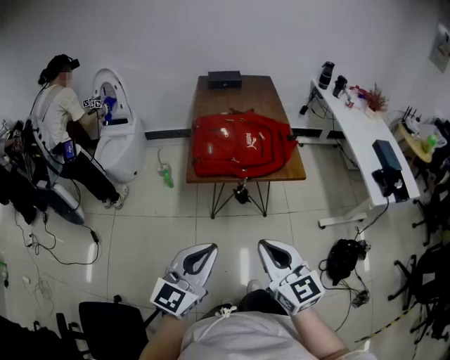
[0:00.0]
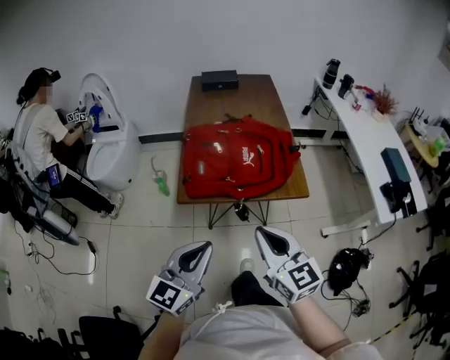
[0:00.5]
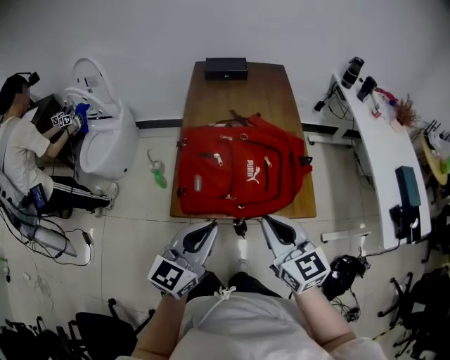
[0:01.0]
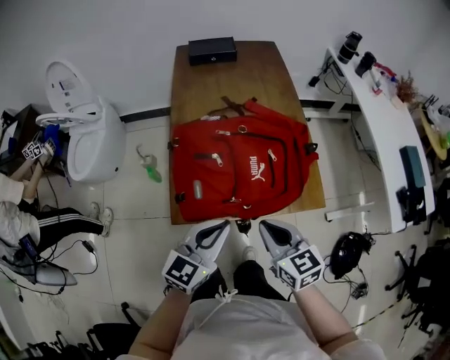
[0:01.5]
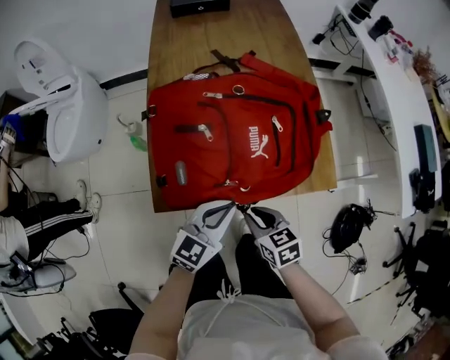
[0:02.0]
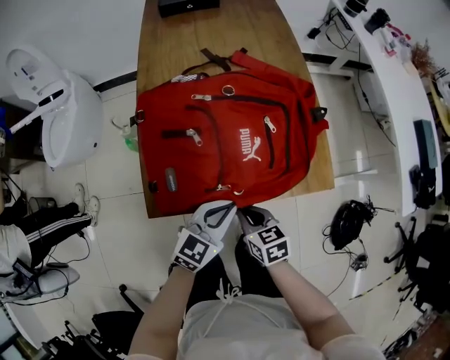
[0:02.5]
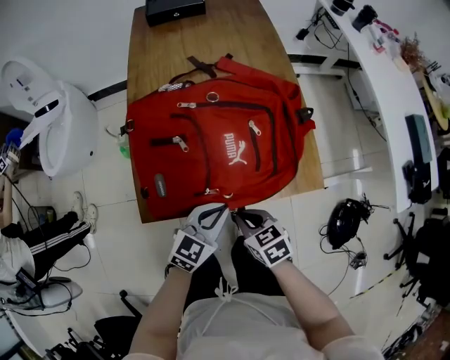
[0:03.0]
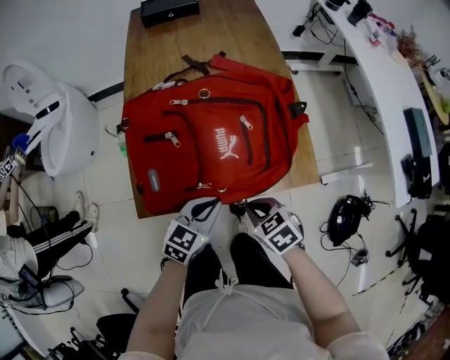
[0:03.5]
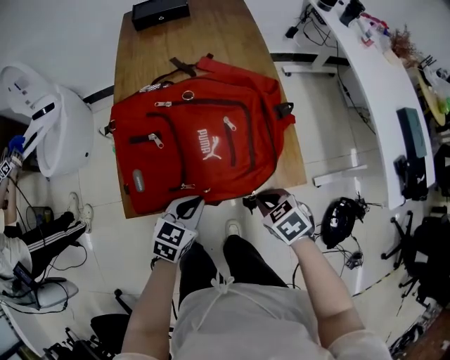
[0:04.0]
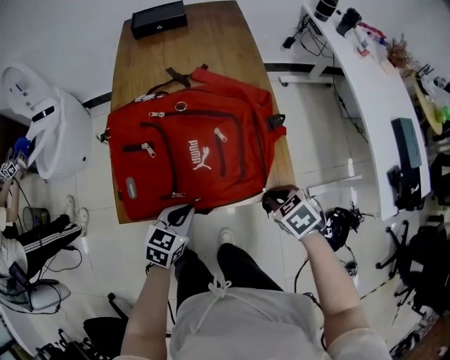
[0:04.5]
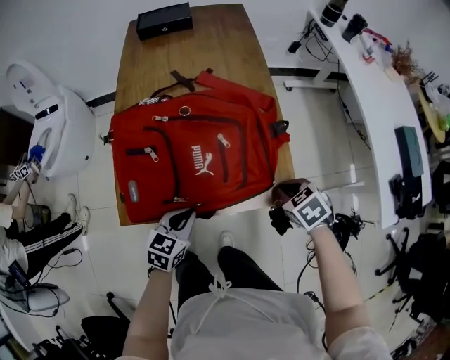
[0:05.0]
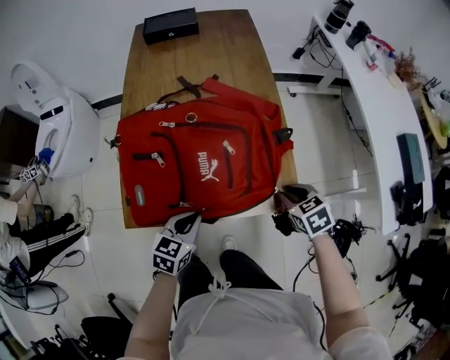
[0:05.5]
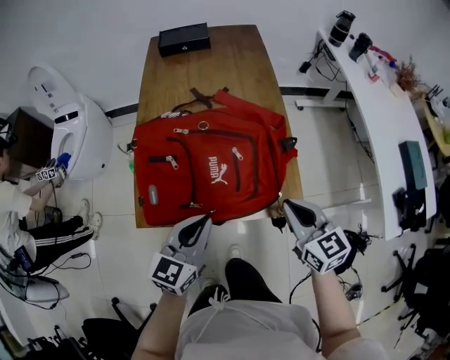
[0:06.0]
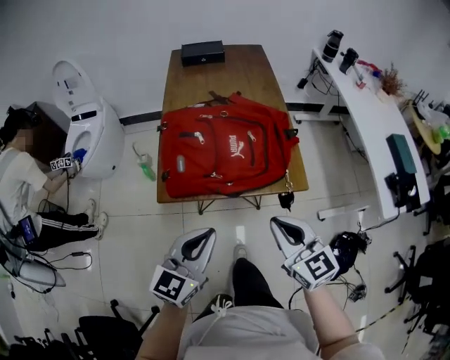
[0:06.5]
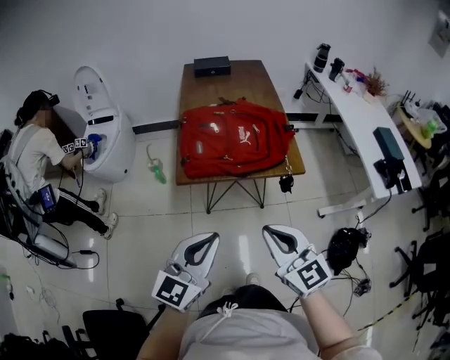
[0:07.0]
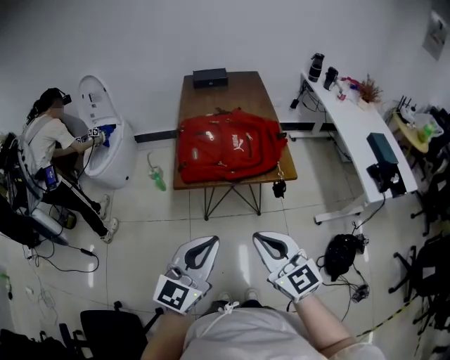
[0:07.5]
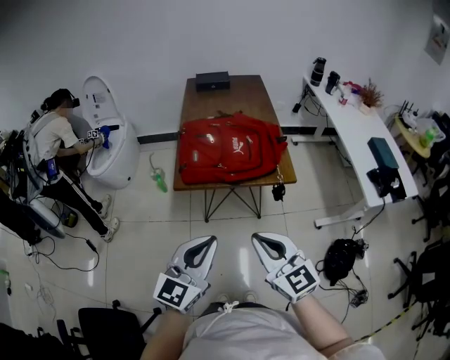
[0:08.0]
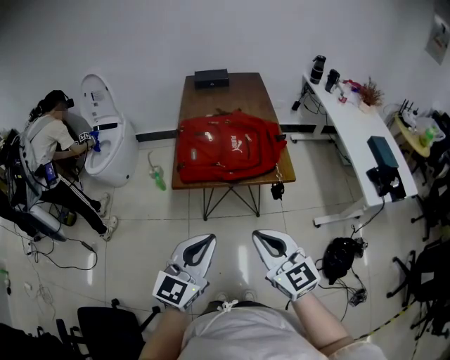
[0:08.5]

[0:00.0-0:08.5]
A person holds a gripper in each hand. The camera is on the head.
0:00.0 to 0:02.0: The two grippers go about 40 cm forward and downward. The left gripper swivels about 20 degrees, while the right gripper angles its fingers downward, by about 40 degrees.
0:02.0 to 0:04.0: The left gripper is displaced downward by about 5 cm. Meanwhile the right gripper moves to the right, about 15 cm, and turns by some 20 degrees.
0:04.0 to 0:06.5: Both grippers move upward and backward, some 25 cm. The left gripper rotates some 30 degrees. The right gripper points its fingers about 50 degrees further upward.
0:06.5 to 0:08.5: Both grippers move backward and upward, roughly 20 cm.

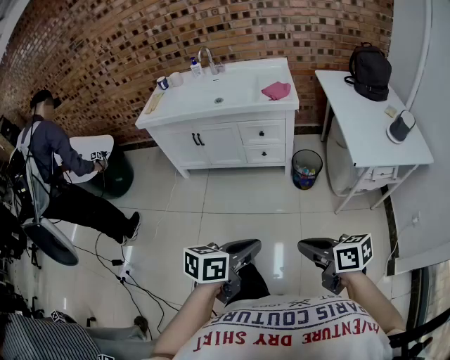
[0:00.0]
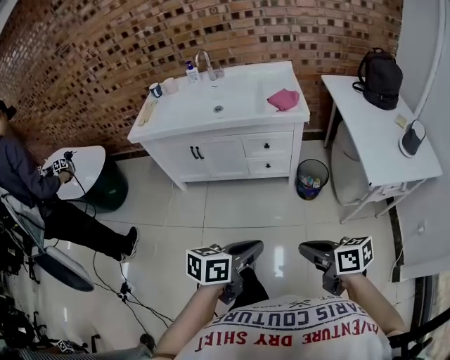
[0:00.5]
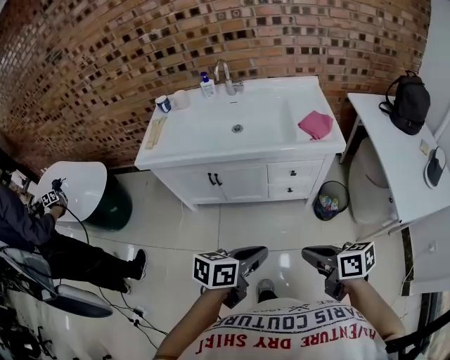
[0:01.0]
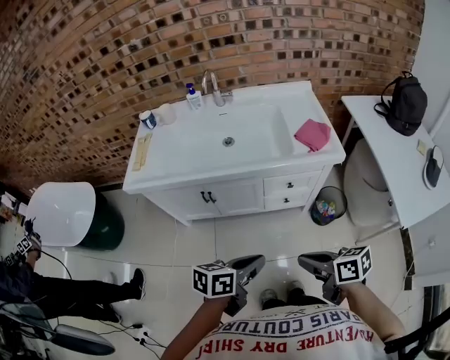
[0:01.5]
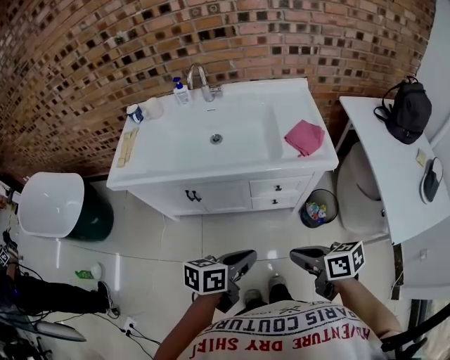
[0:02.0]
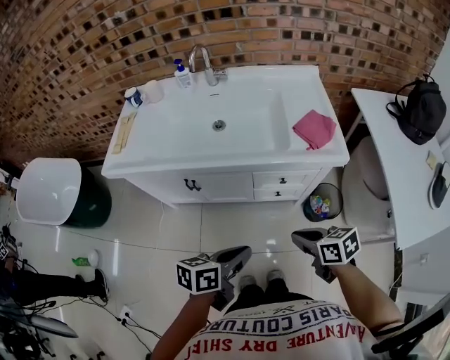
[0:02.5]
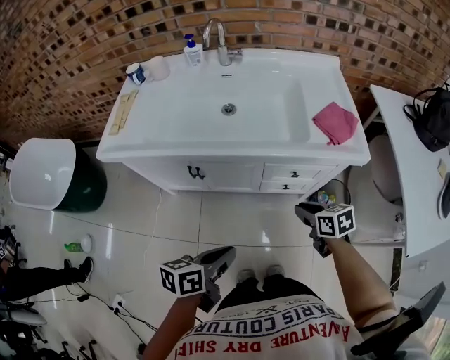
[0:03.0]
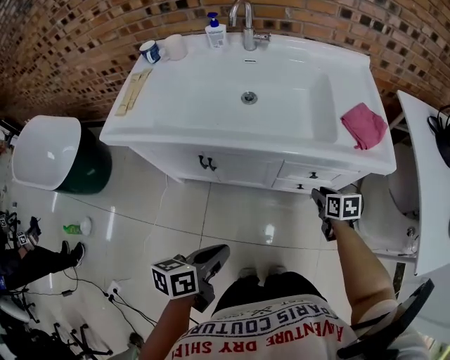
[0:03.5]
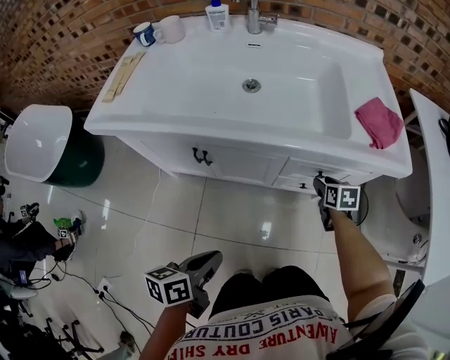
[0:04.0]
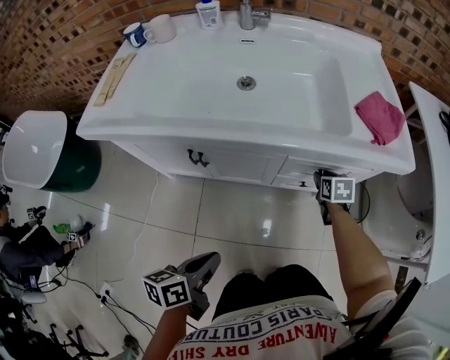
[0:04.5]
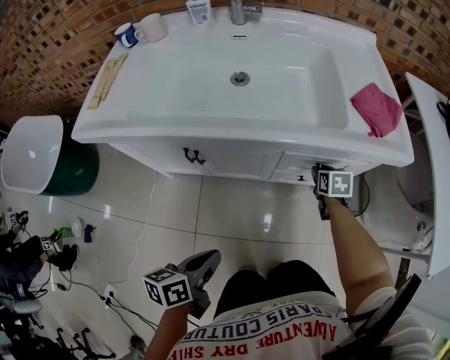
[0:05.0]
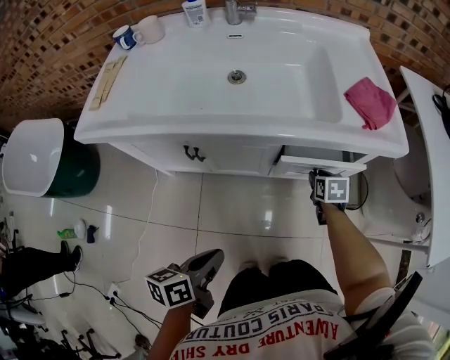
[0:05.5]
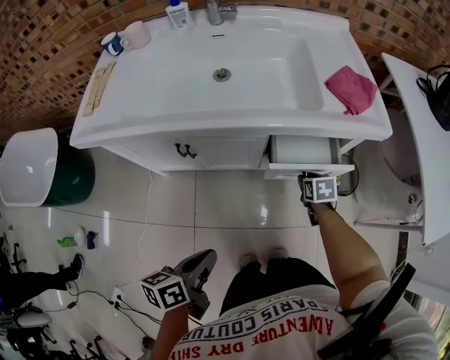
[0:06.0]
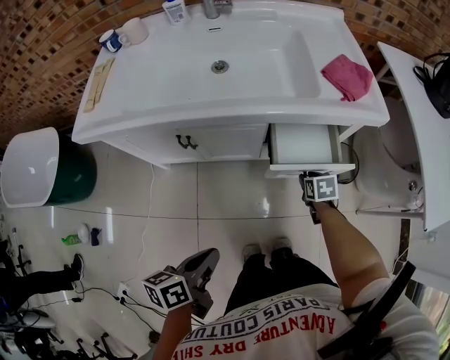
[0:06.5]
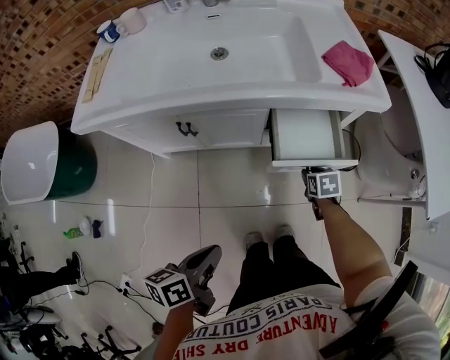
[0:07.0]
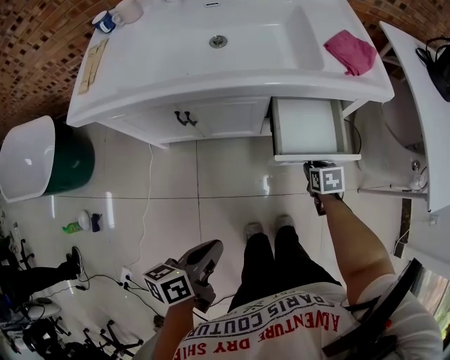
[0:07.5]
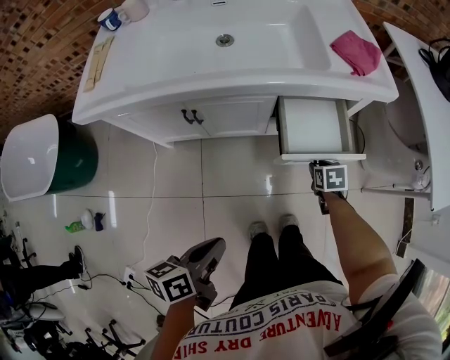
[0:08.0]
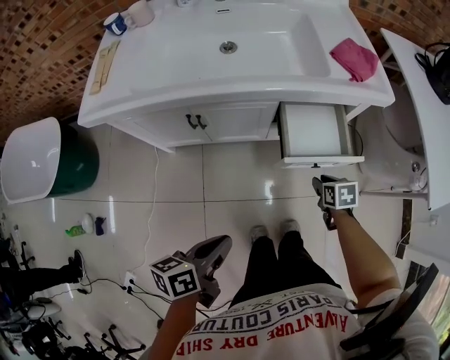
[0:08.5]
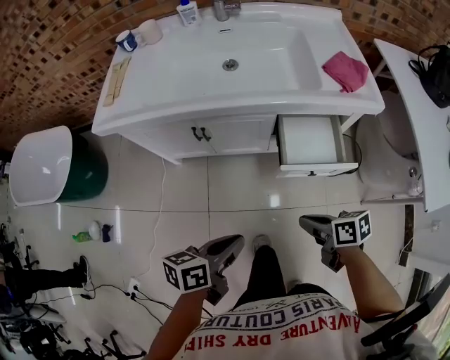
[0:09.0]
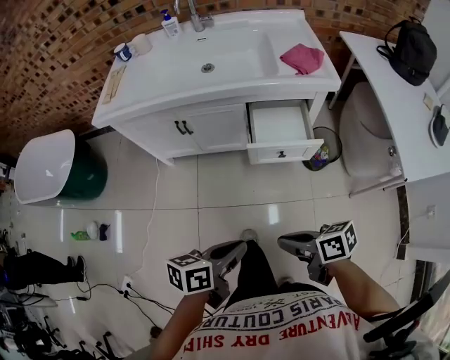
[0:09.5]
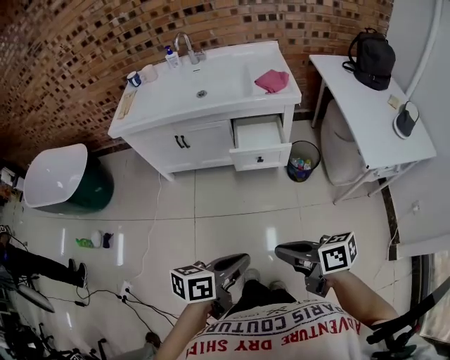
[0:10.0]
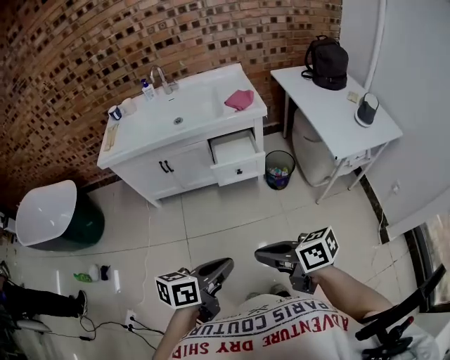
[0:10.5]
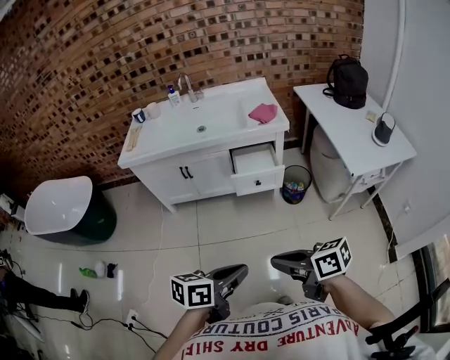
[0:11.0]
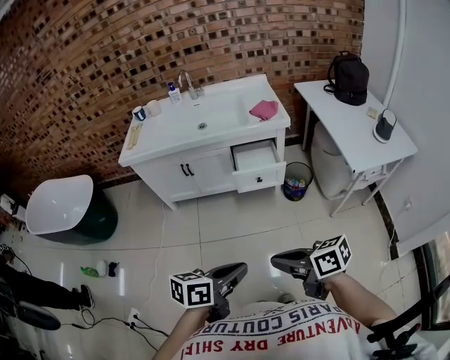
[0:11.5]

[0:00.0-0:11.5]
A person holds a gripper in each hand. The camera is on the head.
0:00.0 to 0:02.0: The two grippers travel together, forward, about 50 cm.
0:02.0 to 0:04.0: The right gripper moves downward and forward, some 50 cm, rotates about 40 degrees, and opens, while the left gripper shifts roughly 25 cm downward and to the left, and rotates roughly 20 degrees.
0:04.0 to 0:06.0: The right gripper heads backward, covering approximately 10 cm.
0:06.0 to 0:07.5: The left gripper moves backward, roughly 5 cm. Meanwhile the right gripper travels backward by some 10 cm.
0:07.5 to 0:09.5: The right gripper ends up approximately 40 cm from where it was, angles its fingers upward, by roughly 40 degrees, and closes; the left gripper moves about 20 cm.
0:09.5 to 0:11.5: The left gripper ends up roughly 30 cm from where it was; the right gripper changes place by some 30 cm.

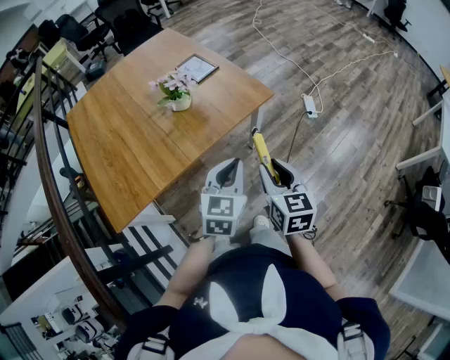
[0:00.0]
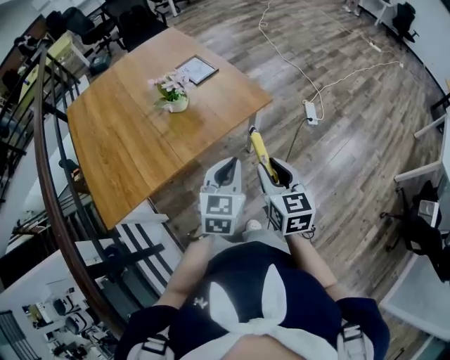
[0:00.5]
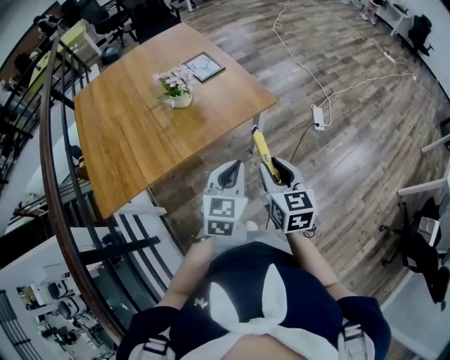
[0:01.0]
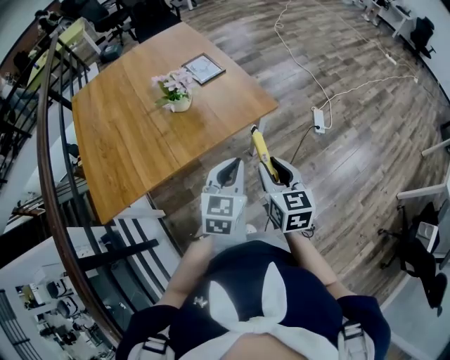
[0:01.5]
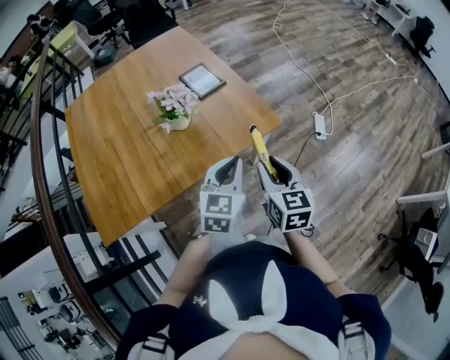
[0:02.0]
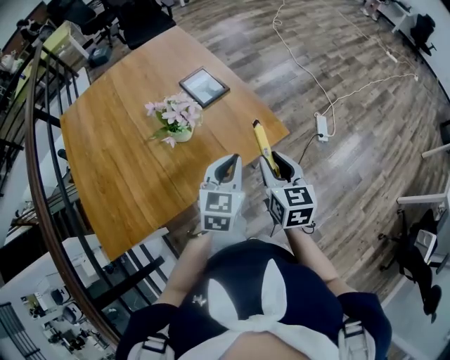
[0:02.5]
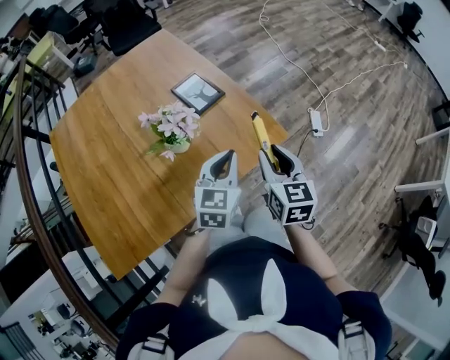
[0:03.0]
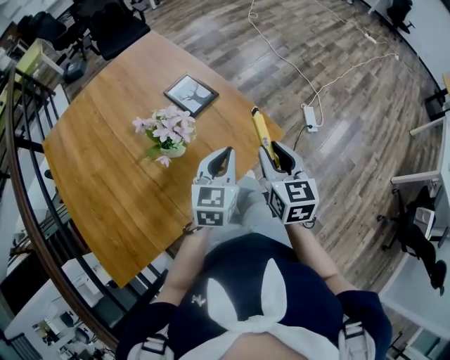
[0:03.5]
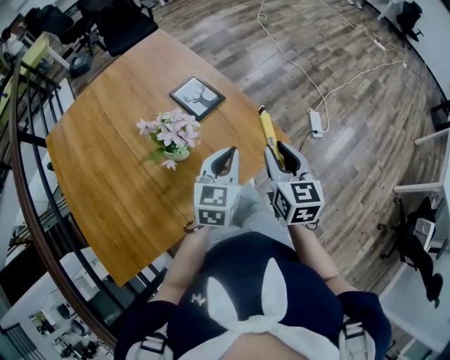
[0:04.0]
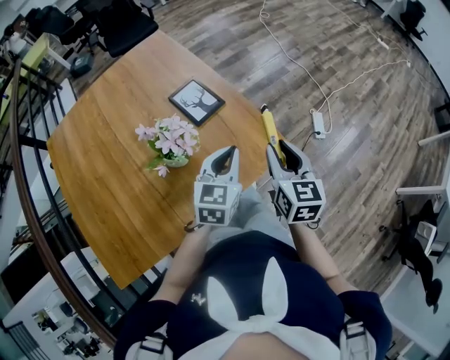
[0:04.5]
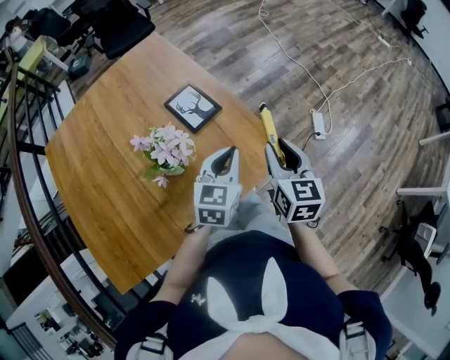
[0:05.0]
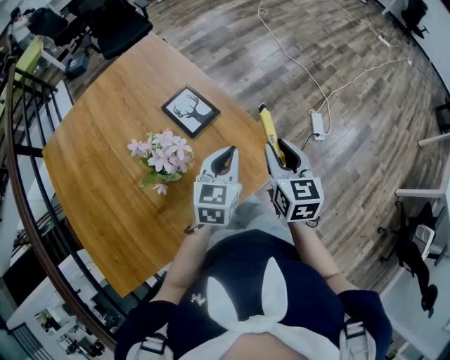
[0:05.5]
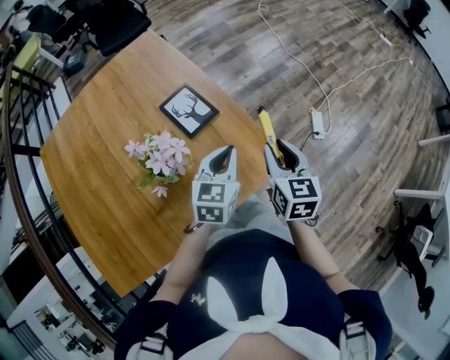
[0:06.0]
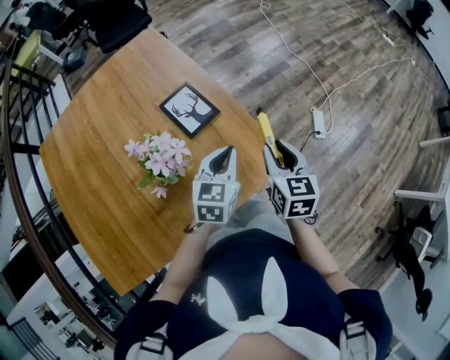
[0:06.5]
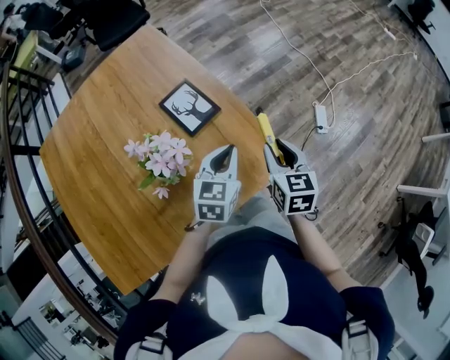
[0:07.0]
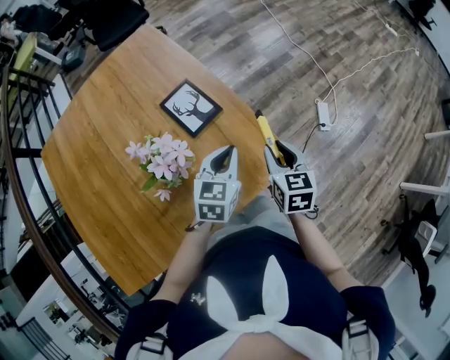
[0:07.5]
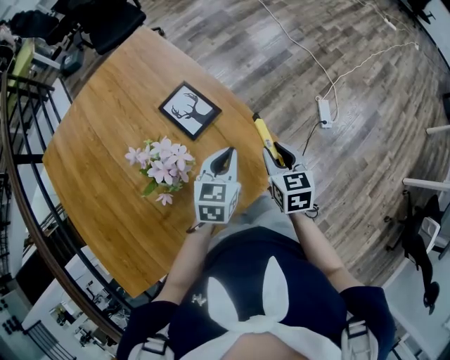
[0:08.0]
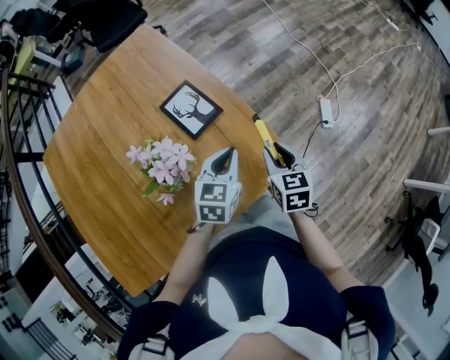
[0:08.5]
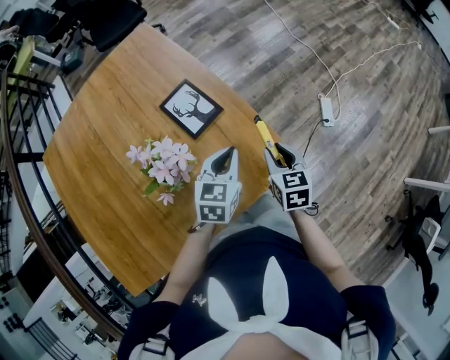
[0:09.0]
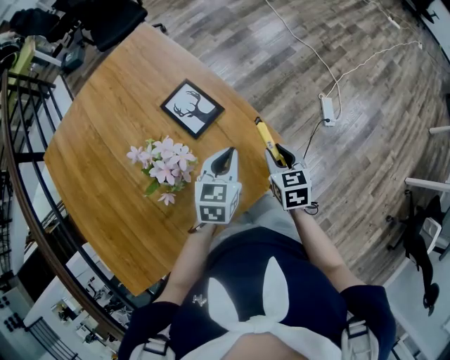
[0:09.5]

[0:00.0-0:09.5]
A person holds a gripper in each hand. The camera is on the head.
0:00.0 to 0:02.0: The grippers both shift forward by about 20 cm.
0:02.0 to 0:04.0: The right gripper goes about 15 cm forward. Meanwhile the left gripper moves forward and to the left, about 20 cm.
0:04.0 to 0:05.5: The two grippers go approximately 10 cm forward.
0:05.5 to 0:07.5: The right gripper heads downward, covering some 10 cm; the left gripper moves some 5 cm.
0:07.5 to 0:09.5: The right gripper goes approximately 5 cm downward.
